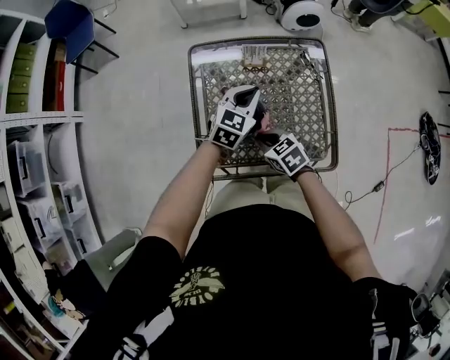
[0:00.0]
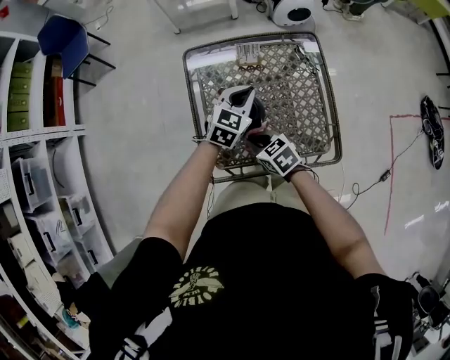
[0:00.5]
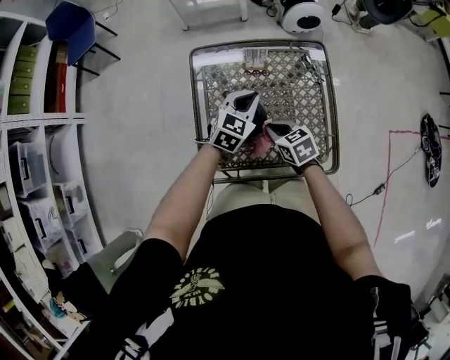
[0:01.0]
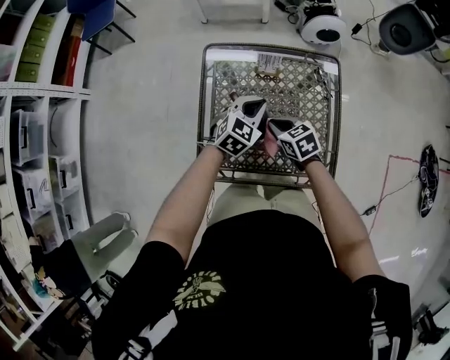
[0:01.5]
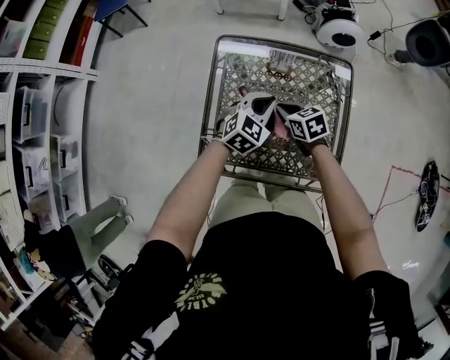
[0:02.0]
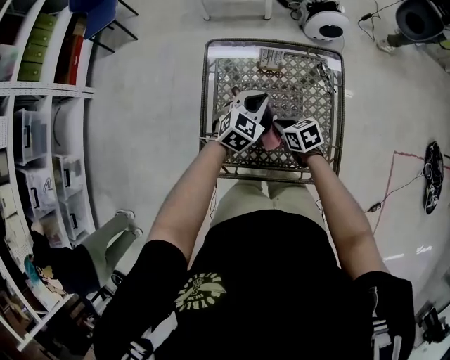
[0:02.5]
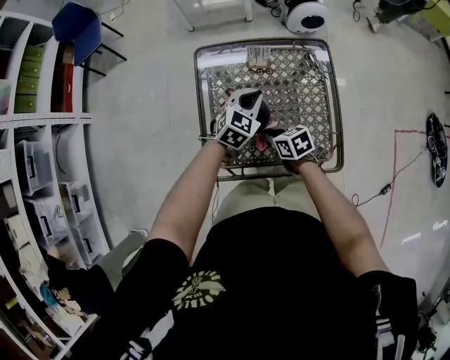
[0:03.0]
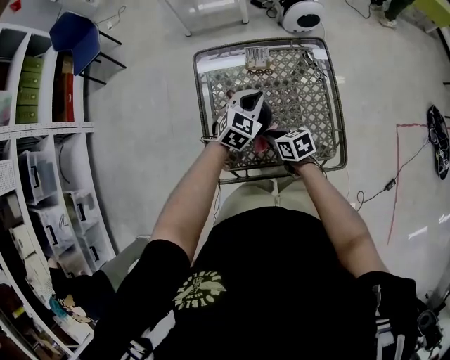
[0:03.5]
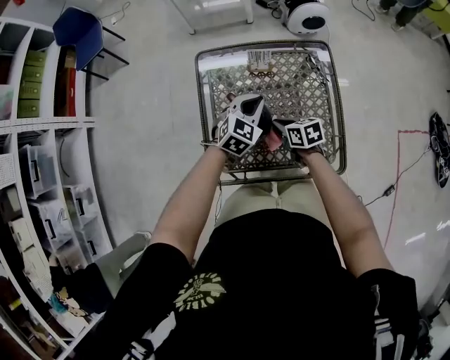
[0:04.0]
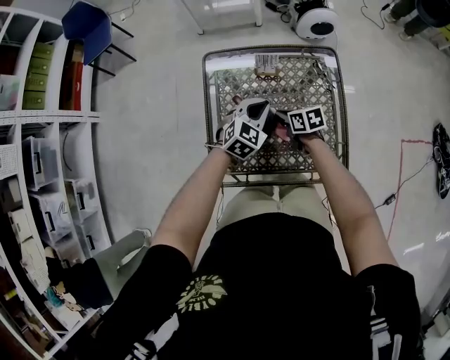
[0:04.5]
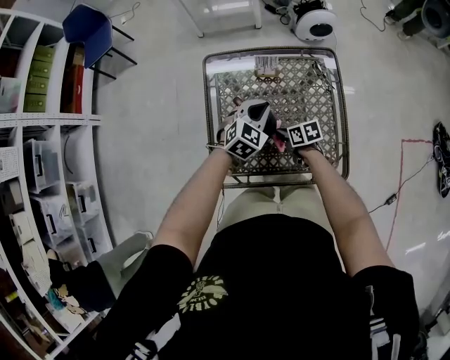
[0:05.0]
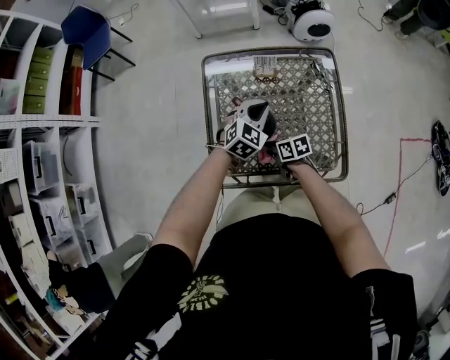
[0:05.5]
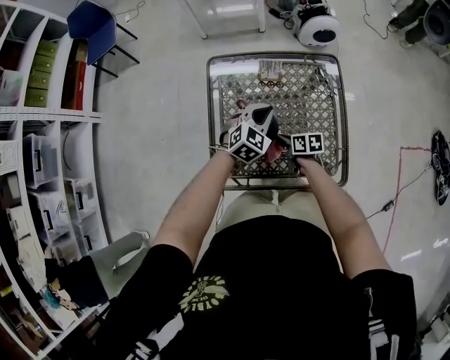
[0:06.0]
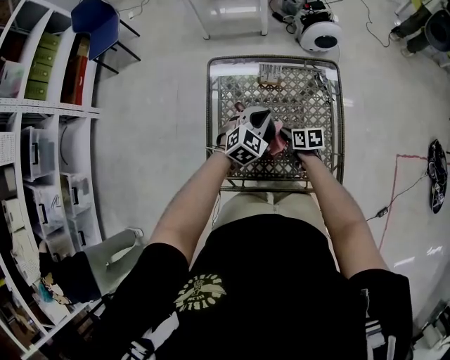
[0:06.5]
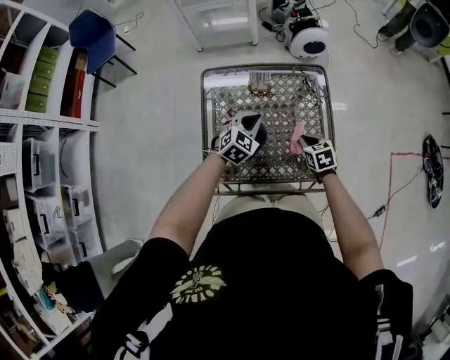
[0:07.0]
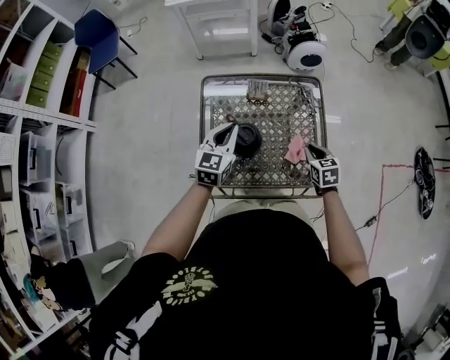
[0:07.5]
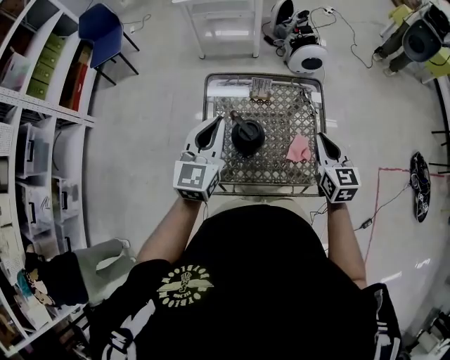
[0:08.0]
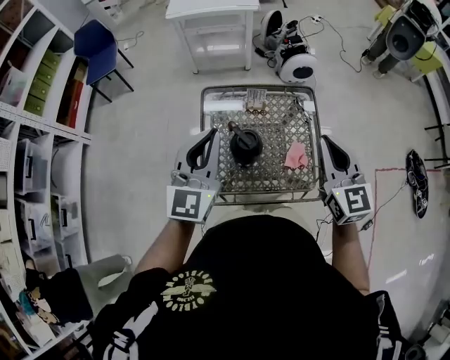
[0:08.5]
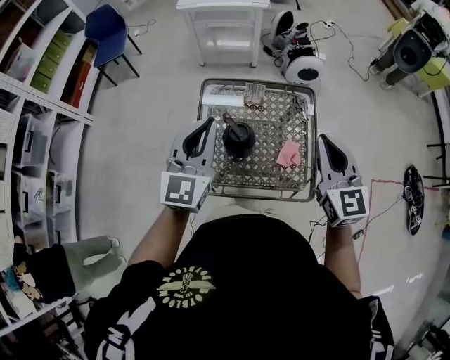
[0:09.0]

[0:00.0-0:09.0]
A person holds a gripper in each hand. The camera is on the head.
0:00.0 to 0:02.0: The right gripper is displaced forward and to the right by some 15 cm.
0:02.0 to 0:04.5: The right gripper moves some 10 cm backward and comes back, and rotates about 20 degrees.
0:04.5 to 0:07.0: The right gripper is displaced to the right and backward by some 15 cm, and swivels roughly 30 degrees.
0:07.0 to 0:09.0: Both grippers travel together upward, some 35 cm. The left gripper tilts its fingers about 40 degrees upward. The right gripper angles its fingers upward, by about 40 degrees.

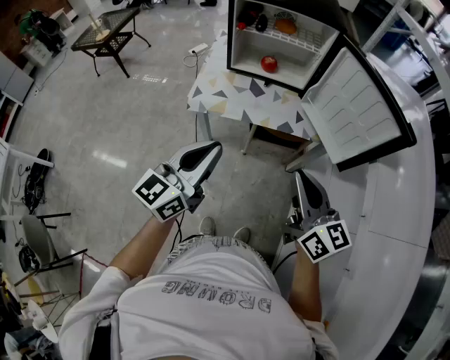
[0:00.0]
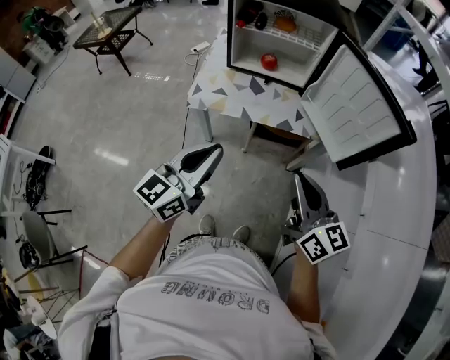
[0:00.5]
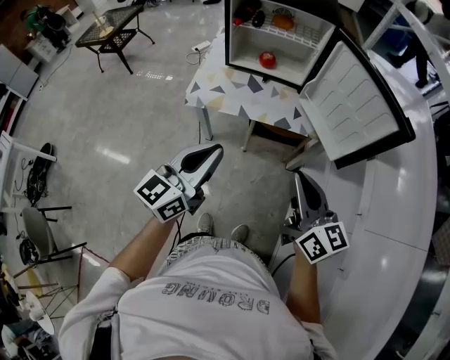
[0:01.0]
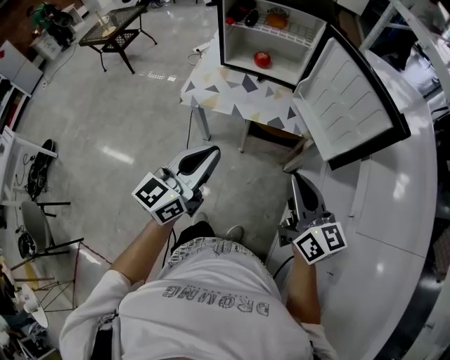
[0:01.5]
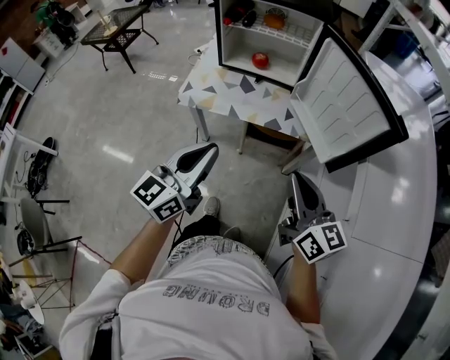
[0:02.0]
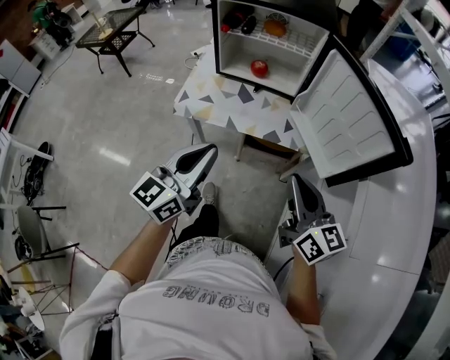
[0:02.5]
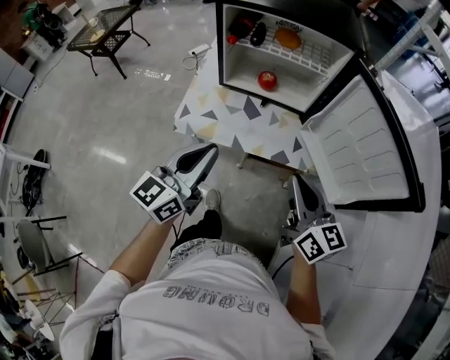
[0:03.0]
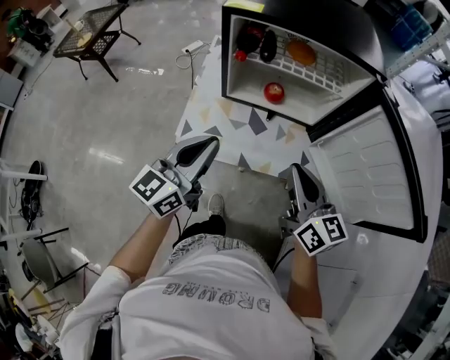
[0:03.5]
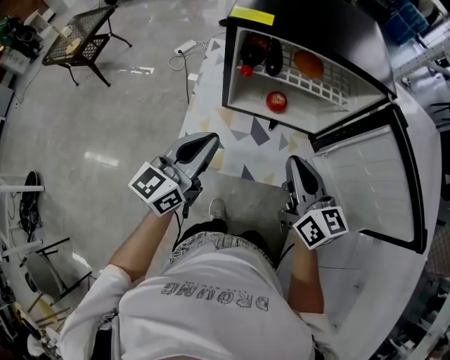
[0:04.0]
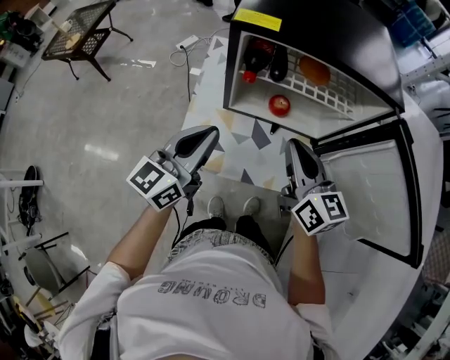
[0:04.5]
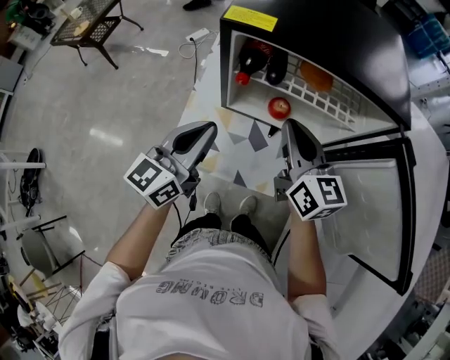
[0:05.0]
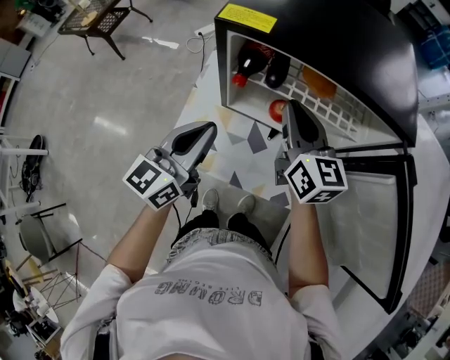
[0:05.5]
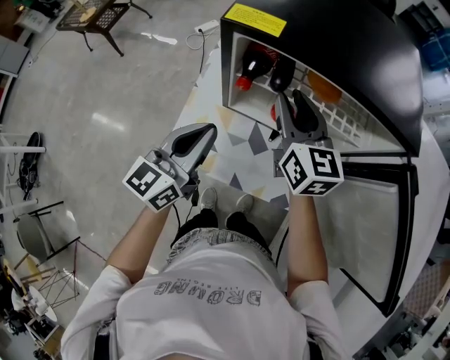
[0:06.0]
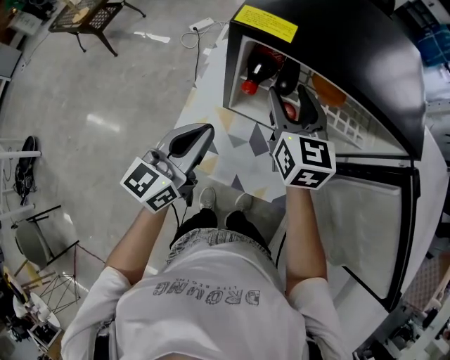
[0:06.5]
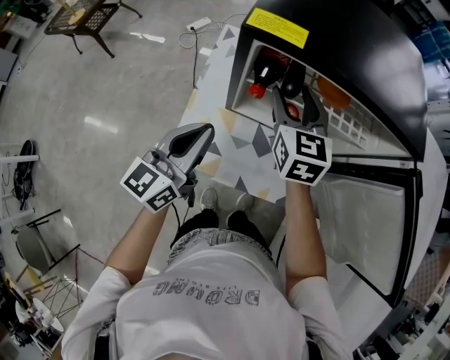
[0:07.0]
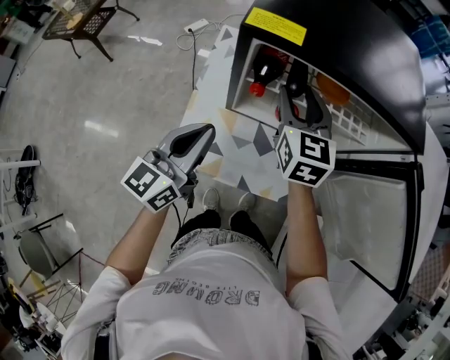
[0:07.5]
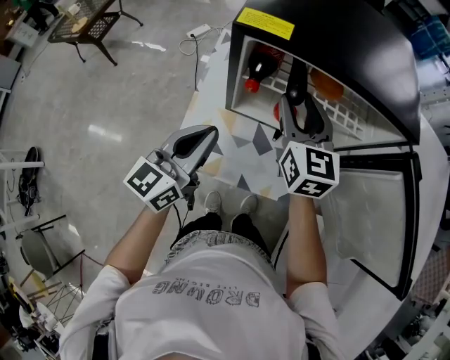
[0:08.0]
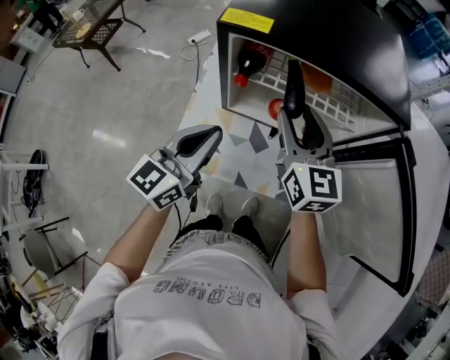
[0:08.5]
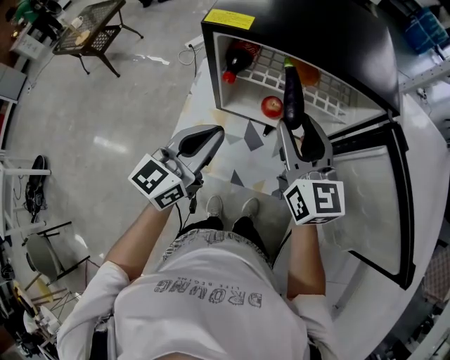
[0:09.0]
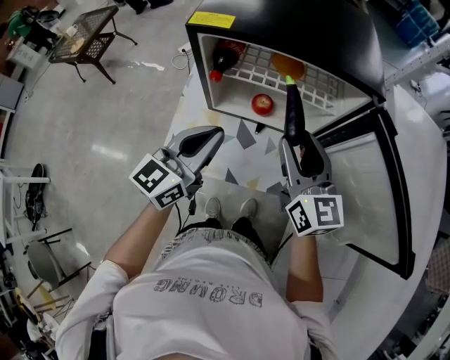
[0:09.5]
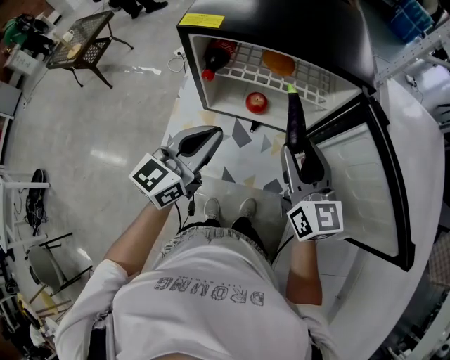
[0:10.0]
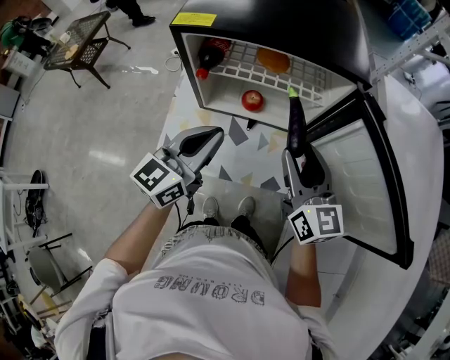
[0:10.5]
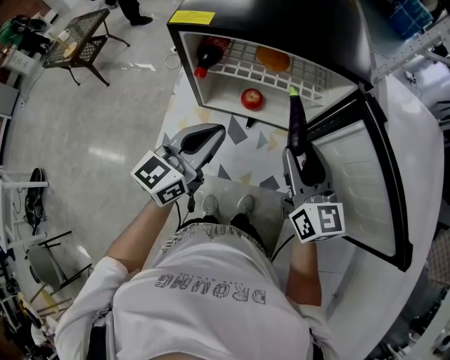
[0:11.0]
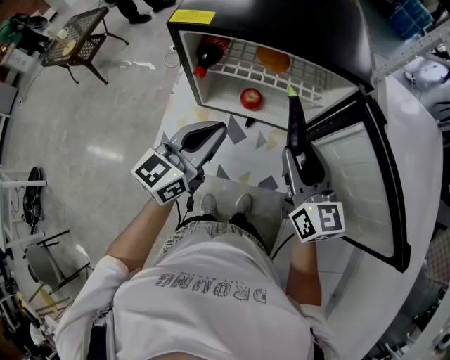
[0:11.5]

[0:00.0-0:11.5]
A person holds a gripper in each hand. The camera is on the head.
0:00.0 to 0:02.0: Both grippers travel together to the right, approximately 10 cm.
0:02.0 to 0:04.0: The two grippers go about 35 cm forward and to the left.
0:04.0 to 0:06.0: The right gripper is displaced forward by about 20 cm, and opens up. The left gripper moves forward, roughly 10 cm.
0:06.0 to 0:07.5: The right gripper opens.
0:07.5 to 0:09.5: The right gripper goes roughly 20 cm backward and to the right. Meanwhile the left gripper moves to the right, roughly 10 cm.
0:09.5 to 0:11.5: The right gripper shifts by approximately 5 cm.

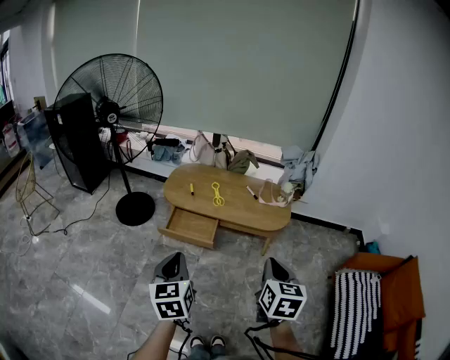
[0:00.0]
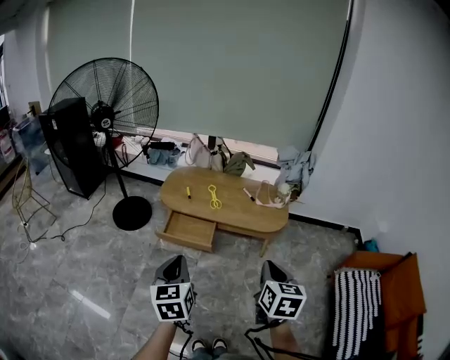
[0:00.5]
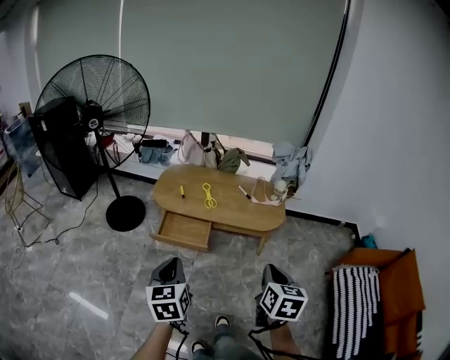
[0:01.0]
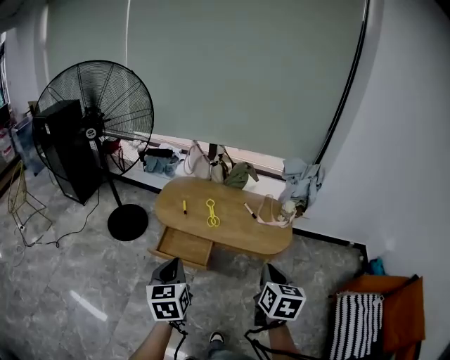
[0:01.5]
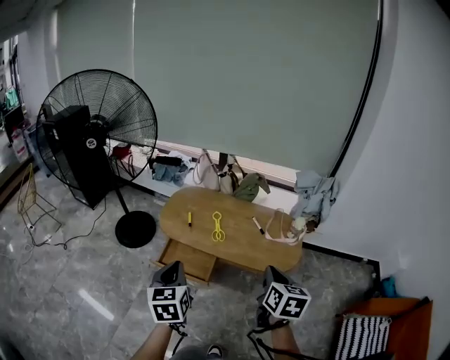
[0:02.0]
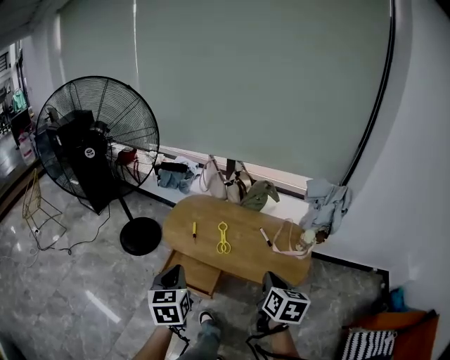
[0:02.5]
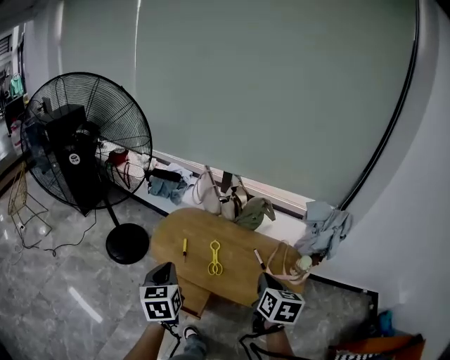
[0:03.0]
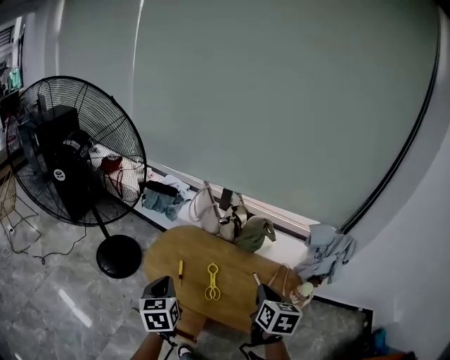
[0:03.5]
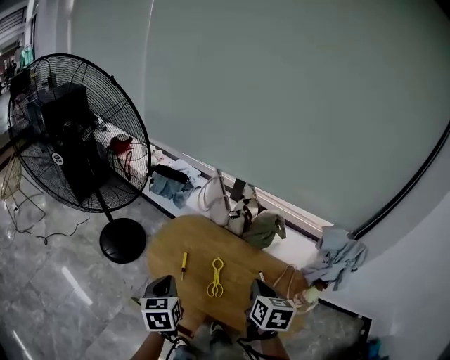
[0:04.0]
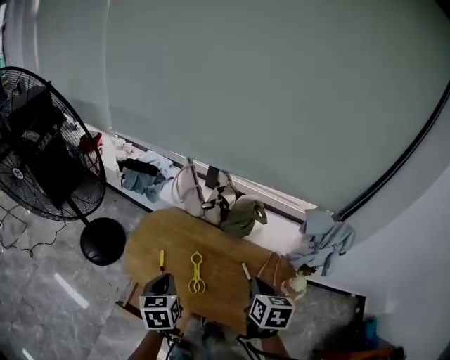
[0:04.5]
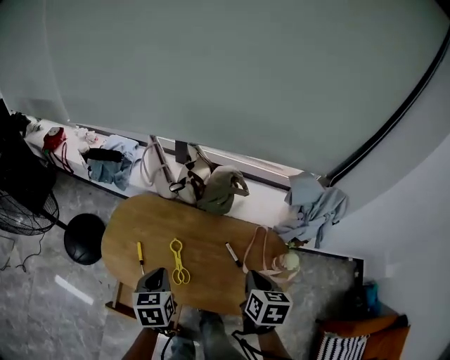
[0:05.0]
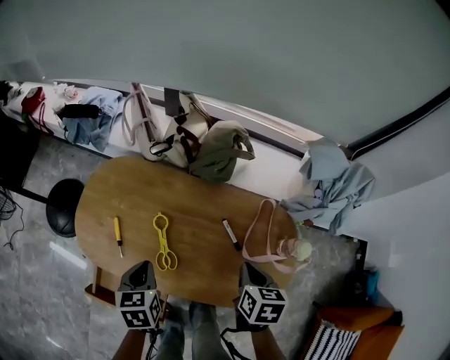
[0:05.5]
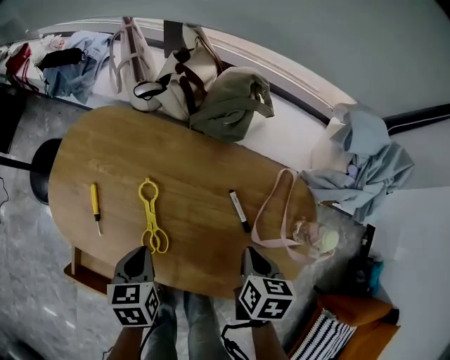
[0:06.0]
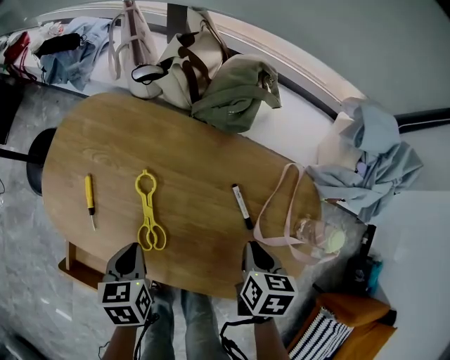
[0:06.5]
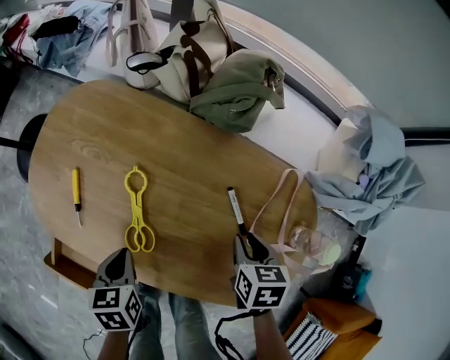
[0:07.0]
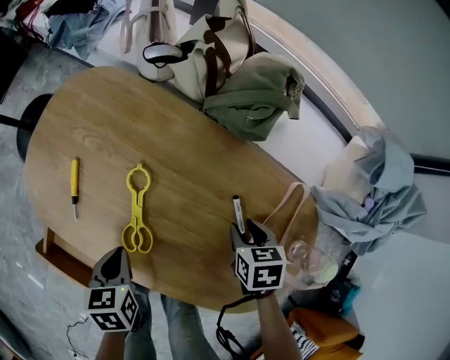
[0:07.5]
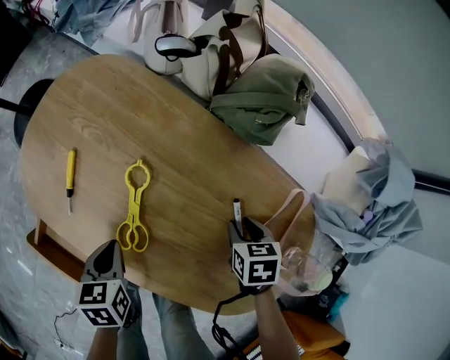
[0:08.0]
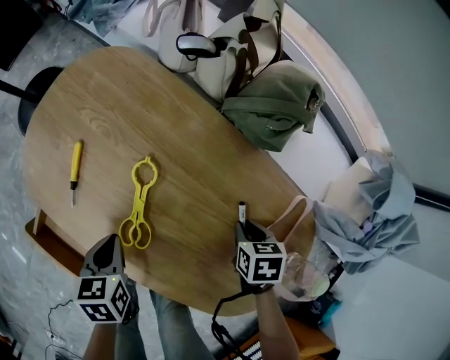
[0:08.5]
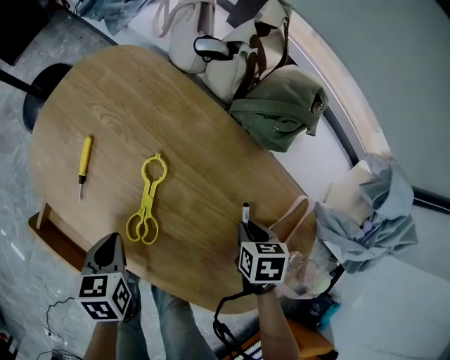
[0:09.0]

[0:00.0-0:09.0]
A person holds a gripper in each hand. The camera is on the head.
0:00.0 to 0:02.0: Both grippers travel together forward, roughly 25 cm.
0:02.0 to 0:04.5: Both grippers travel together forward, roughly 40 cm.
0:04.5 to 0:07.0: The two grippers go some 35 cm downward. The right gripper turns by approximately 20 degrees, and opens up. The left gripper turns by some 30 degrees.
0:07.0 to 0:09.0: The right gripper shifts some 5 cm downward, and changes its angle by about 20 degrees.
